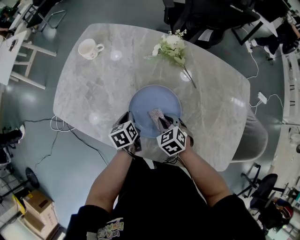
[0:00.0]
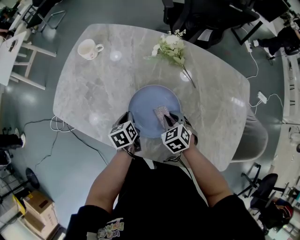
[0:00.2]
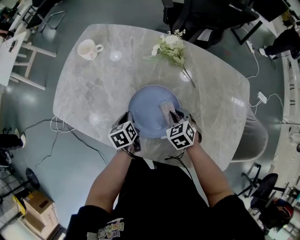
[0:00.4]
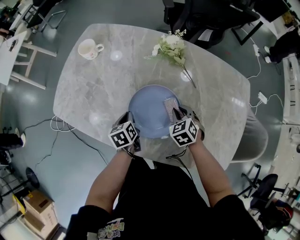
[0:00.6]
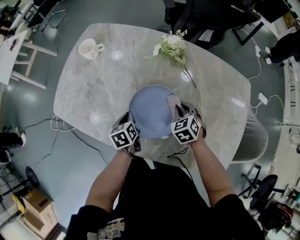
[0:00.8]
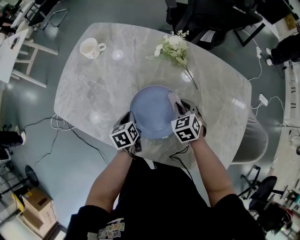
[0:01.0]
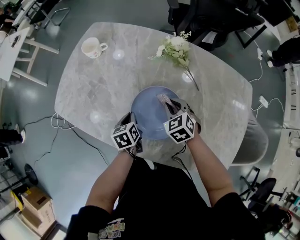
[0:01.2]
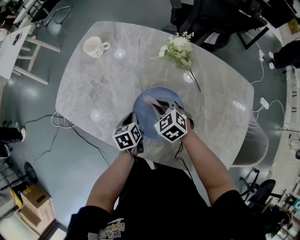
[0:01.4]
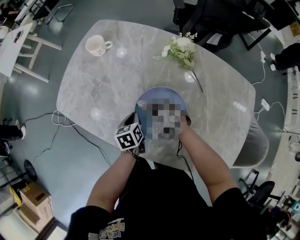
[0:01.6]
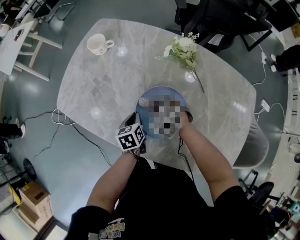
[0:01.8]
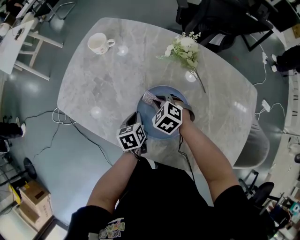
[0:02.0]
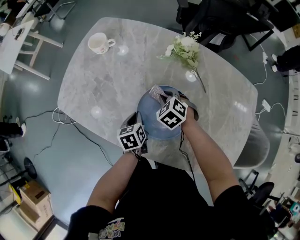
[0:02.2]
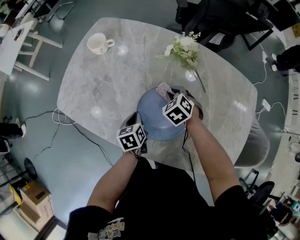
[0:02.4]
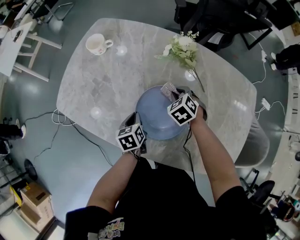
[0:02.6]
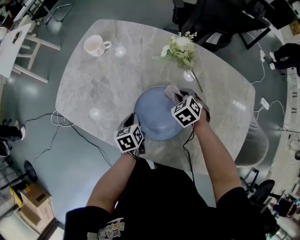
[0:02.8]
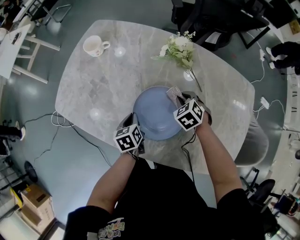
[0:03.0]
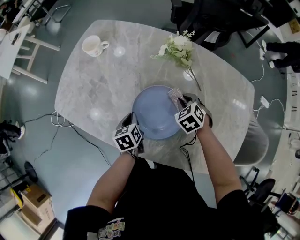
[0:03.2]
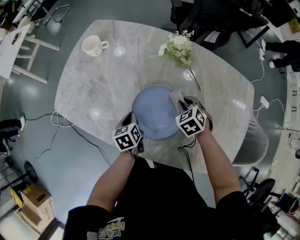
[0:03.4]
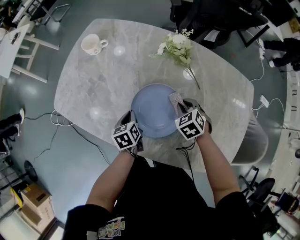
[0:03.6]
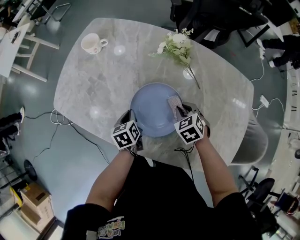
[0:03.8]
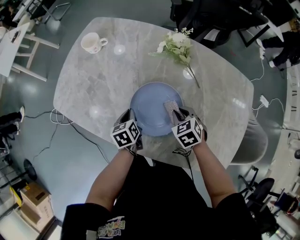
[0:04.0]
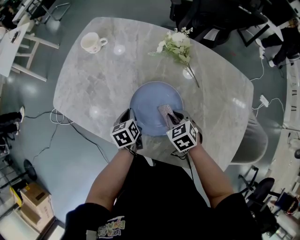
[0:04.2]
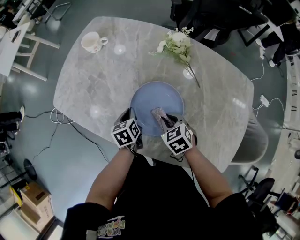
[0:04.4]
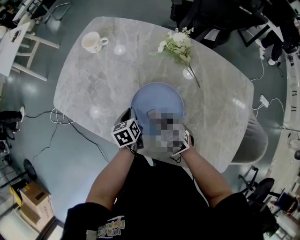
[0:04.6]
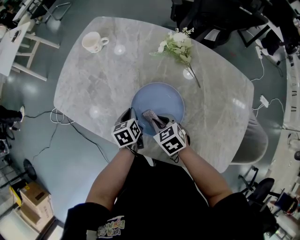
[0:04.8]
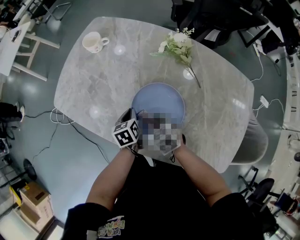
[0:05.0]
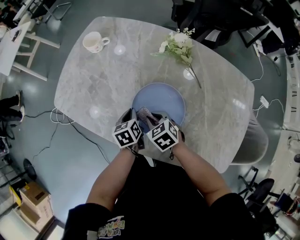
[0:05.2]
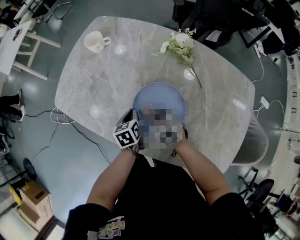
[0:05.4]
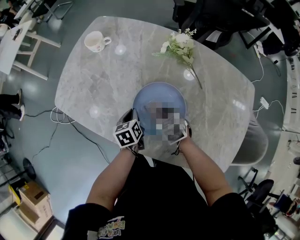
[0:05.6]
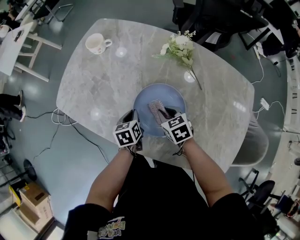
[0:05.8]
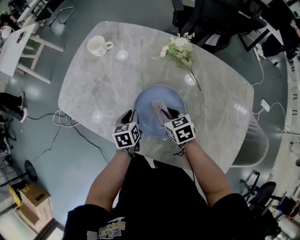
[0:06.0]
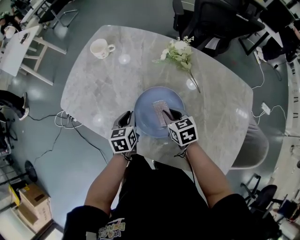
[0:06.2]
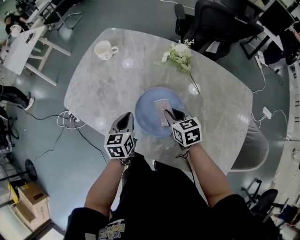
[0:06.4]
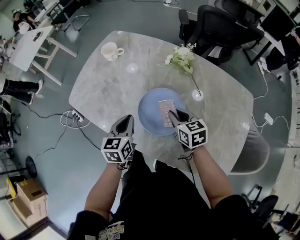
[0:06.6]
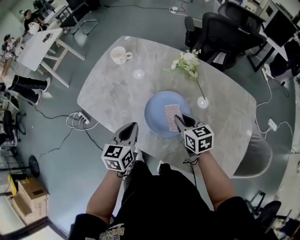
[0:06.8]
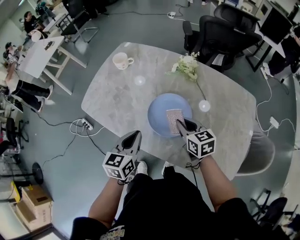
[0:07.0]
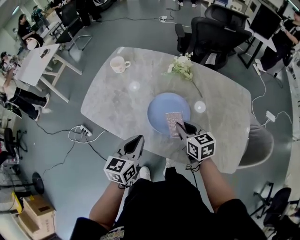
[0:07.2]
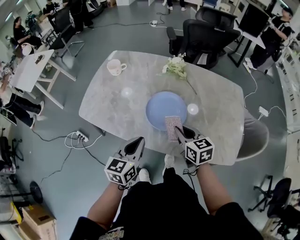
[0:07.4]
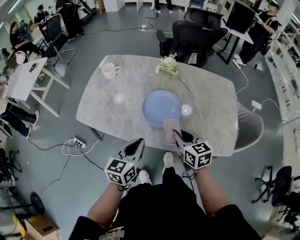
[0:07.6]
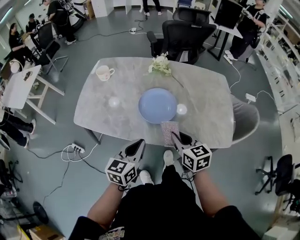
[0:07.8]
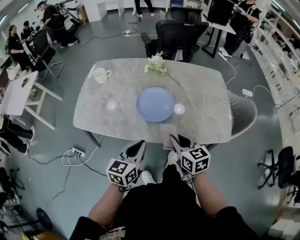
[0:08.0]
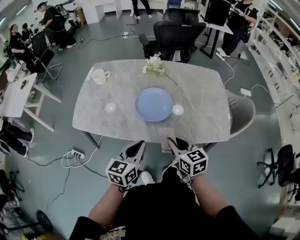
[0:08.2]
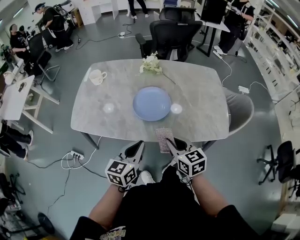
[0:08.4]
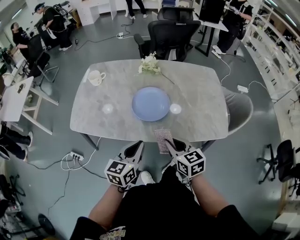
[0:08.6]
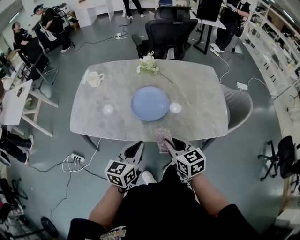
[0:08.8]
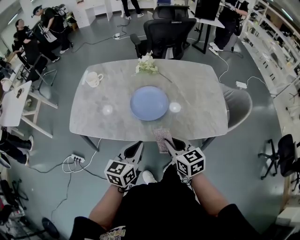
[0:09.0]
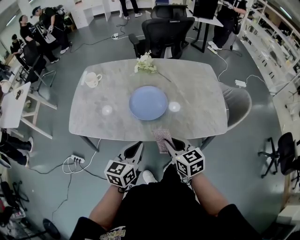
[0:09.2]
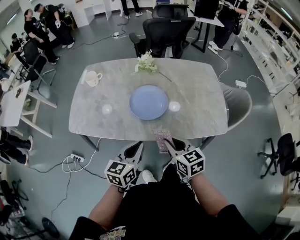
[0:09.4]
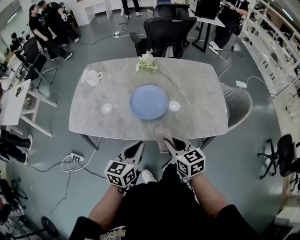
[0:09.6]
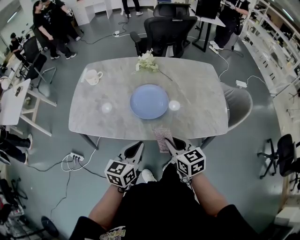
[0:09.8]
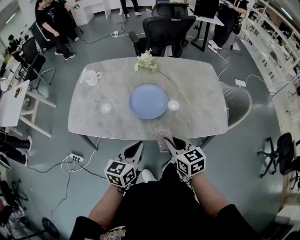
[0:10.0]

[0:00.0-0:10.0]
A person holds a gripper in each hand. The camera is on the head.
0:00.0 to 0:01.4: The right gripper shifts approximately 5 cm forward.
0:01.4 to 0:02.8: The right gripper travels to the right by approximately 10 cm.
0:02.8 to 0:04.2: The right gripper is displaced backward by approximately 10 cm.
0:05.8 to 0:07.2: The two grippers go about 20 cm upward and backward. The right gripper swivels some 20 degrees. Meanwhile the left gripper swivels about 40 degrees.
0:07.2 to 0:08.6: The left gripper goes roughly 10 cm backward, and rotates about 20 degrees; the right gripper is displaced backward by roughly 20 cm.
0:08.6 to 0:10.0: Both grippers stay put.

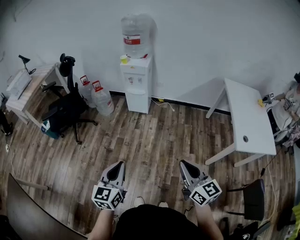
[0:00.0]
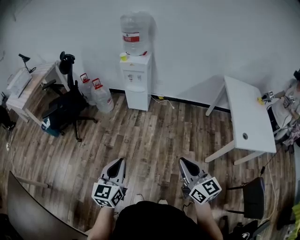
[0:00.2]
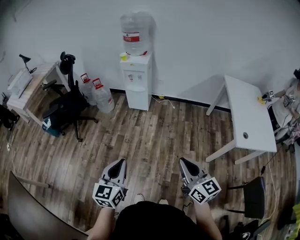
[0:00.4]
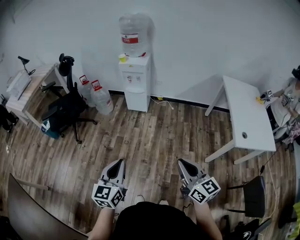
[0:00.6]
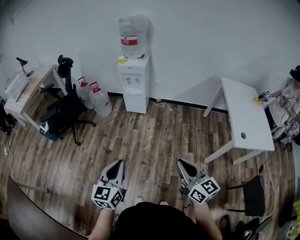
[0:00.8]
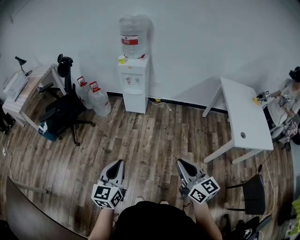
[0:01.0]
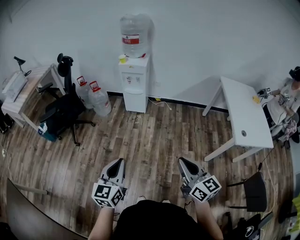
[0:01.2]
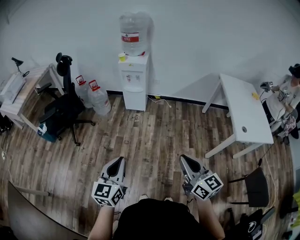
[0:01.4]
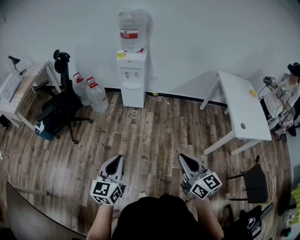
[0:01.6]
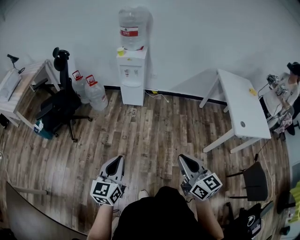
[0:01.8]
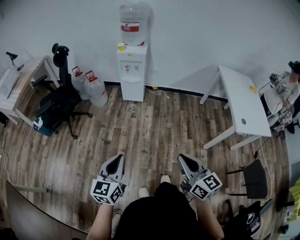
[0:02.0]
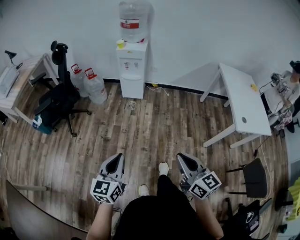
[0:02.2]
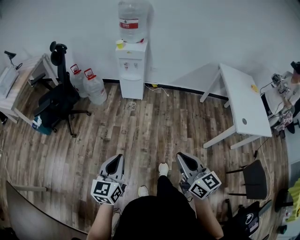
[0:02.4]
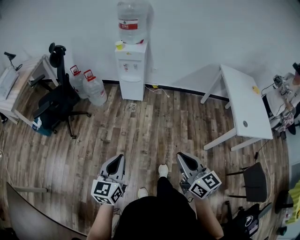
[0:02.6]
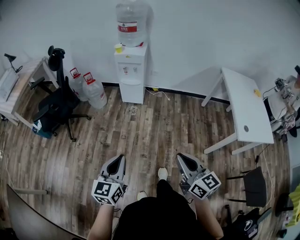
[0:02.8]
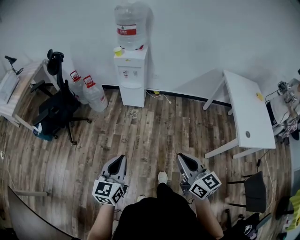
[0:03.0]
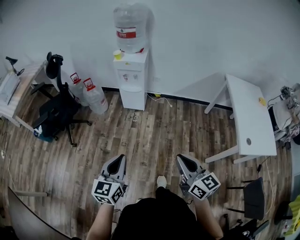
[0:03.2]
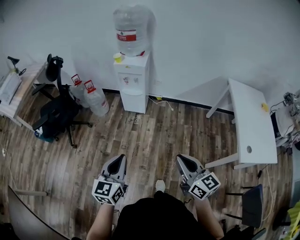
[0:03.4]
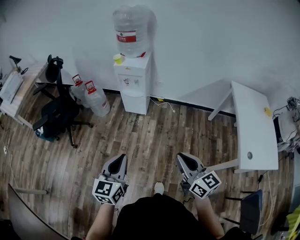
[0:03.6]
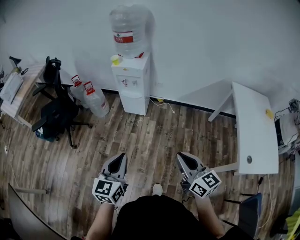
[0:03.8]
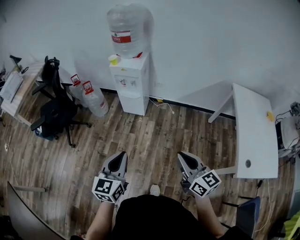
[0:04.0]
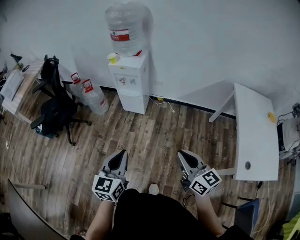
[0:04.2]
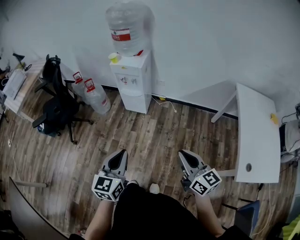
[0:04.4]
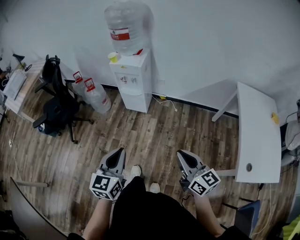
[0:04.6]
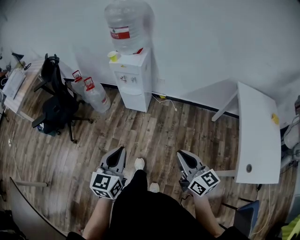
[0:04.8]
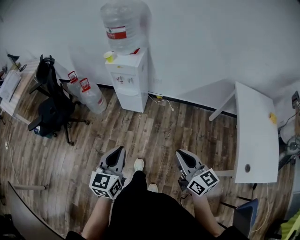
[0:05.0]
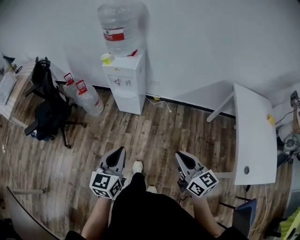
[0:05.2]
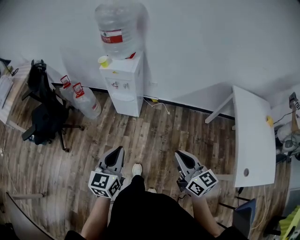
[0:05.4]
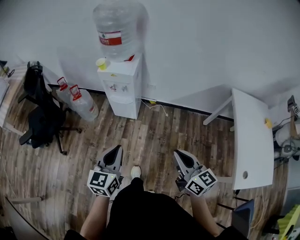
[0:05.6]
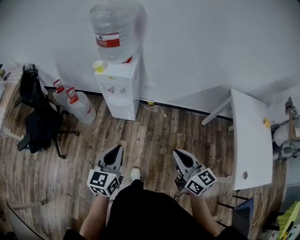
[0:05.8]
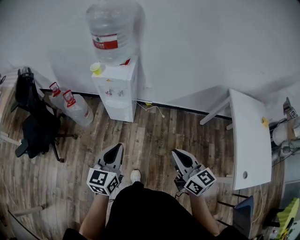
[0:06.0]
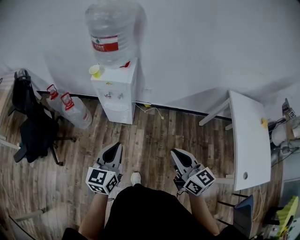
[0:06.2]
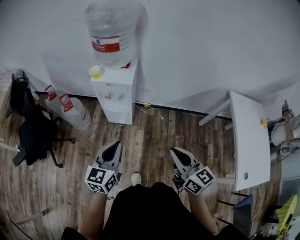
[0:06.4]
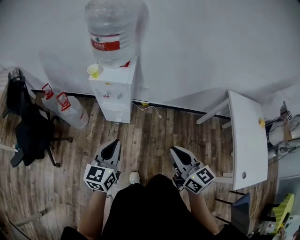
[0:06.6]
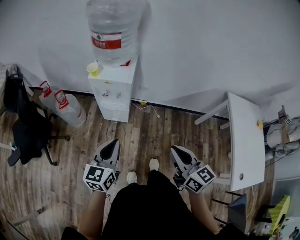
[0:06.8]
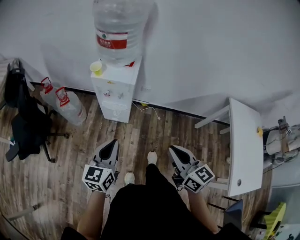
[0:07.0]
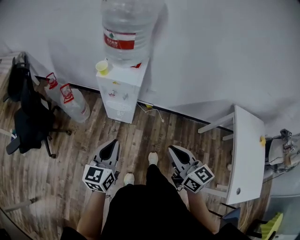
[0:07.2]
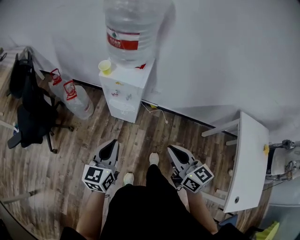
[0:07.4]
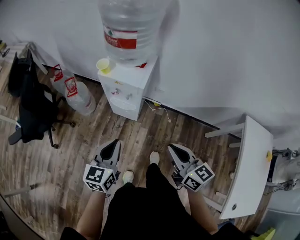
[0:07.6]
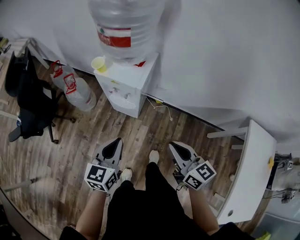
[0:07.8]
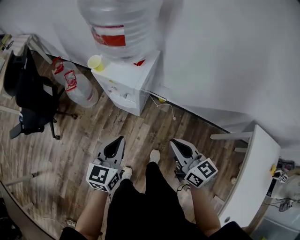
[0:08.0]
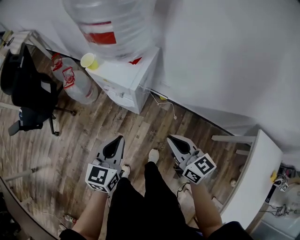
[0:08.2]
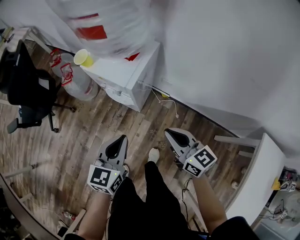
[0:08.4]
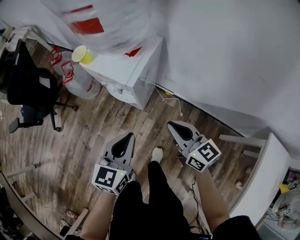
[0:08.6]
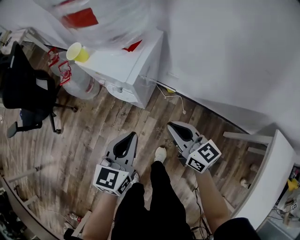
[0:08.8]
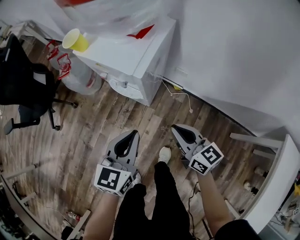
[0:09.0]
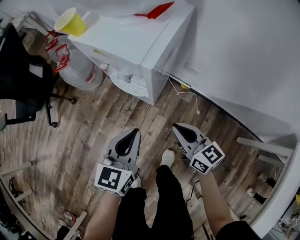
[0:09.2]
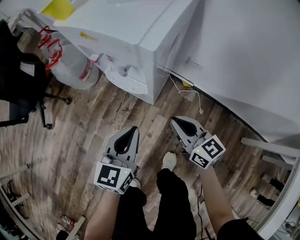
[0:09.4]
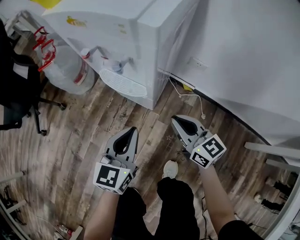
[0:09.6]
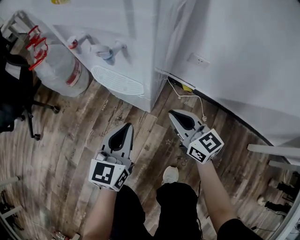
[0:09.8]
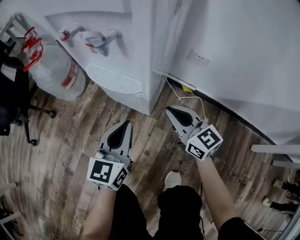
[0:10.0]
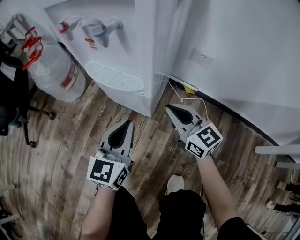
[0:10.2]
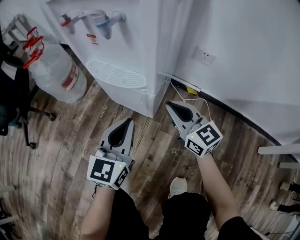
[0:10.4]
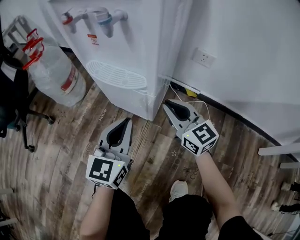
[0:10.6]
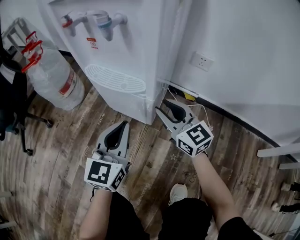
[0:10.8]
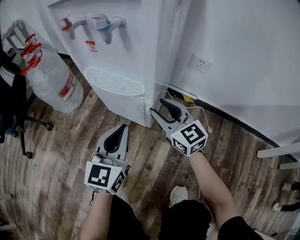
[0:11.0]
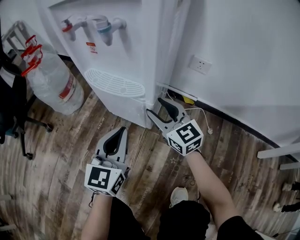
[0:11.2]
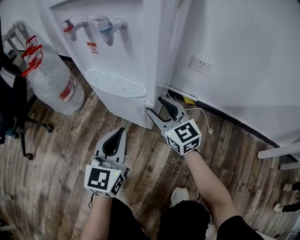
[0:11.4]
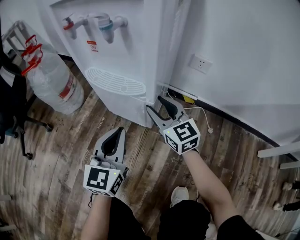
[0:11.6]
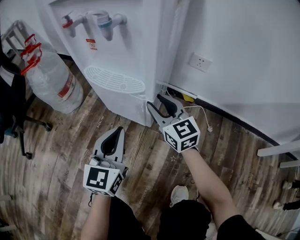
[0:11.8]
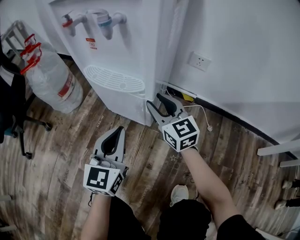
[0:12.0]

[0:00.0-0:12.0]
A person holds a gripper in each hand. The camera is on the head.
0:00.0 to 0:01.6: Both grippers travel together to the left, about 10 cm.
0:01.6 to 0:03.0: Both grippers travel together forward, about 10 cm.
0:03.0 to 0:04.4: The right gripper goes roughly 25 cm forward and to the right. Meanwhile the left gripper travels to the right and forward by about 25 cm.
0:04.4 to 0:06.0: The two grippers go about 20 cm forward.
0:06.0 to 0:07.6: Both grippers move forward, some 20 cm.
0:07.6 to 0:09.0: The left gripper heads downward, to the right and forward, covering some 25 cm; the right gripper is displaced downward and forward by some 30 cm.
0:09.0 to 0:10.4: The grippers both shift downward by approximately 35 cm. The right gripper changes its angle by approximately 20 degrees.
0:10.4 to 0:12.0: The right gripper shifts by roughly 5 cm, and opens its fingers.

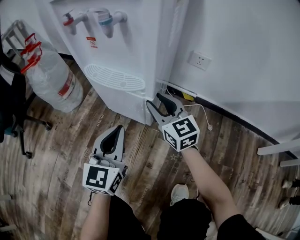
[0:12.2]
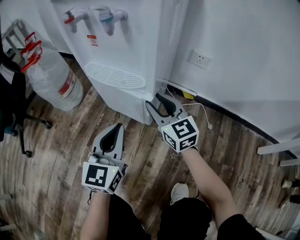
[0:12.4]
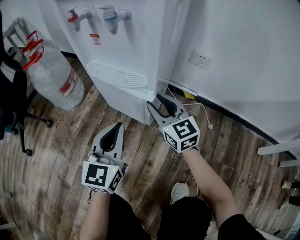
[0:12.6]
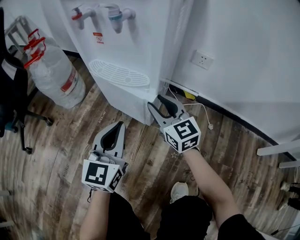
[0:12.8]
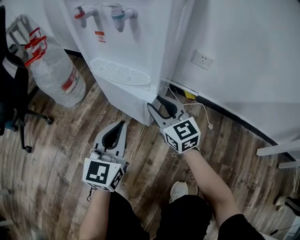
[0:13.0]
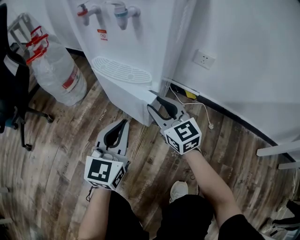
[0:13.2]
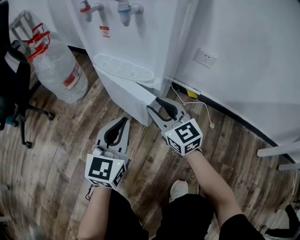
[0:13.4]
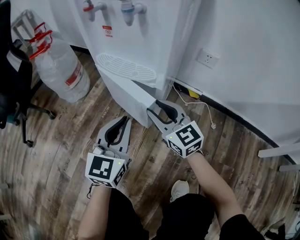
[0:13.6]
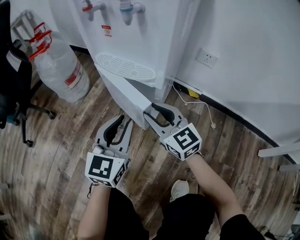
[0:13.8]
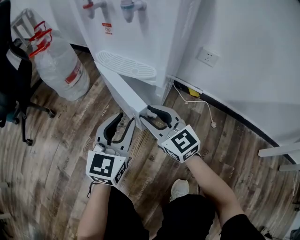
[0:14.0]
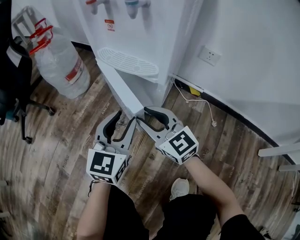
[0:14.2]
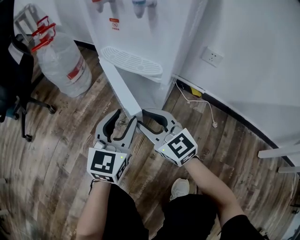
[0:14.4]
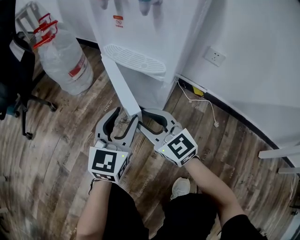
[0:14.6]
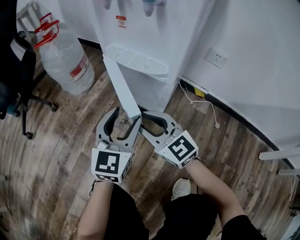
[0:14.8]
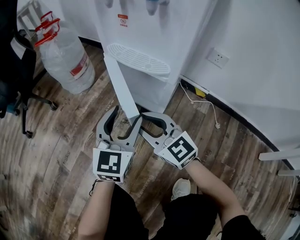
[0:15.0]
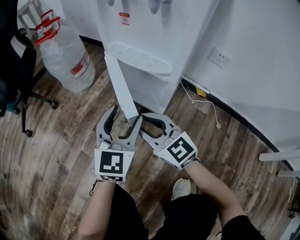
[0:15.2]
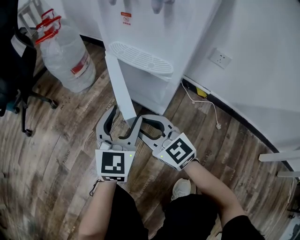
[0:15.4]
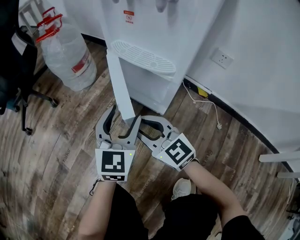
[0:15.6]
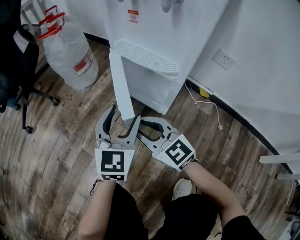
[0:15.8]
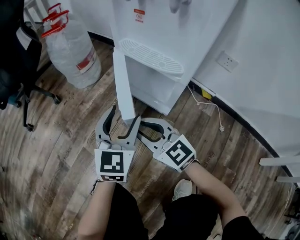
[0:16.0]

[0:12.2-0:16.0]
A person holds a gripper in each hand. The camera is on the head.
0:12.2 to 0:13.4: The right gripper moves some 5 cm.
0:13.4 to 0:14.8: The right gripper is displaced to the left and backward by approximately 10 cm; the left gripper opens its fingers.
0:14.8 to 0:16.0: The right gripper goes about 5 cm to the left.
